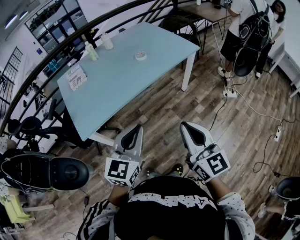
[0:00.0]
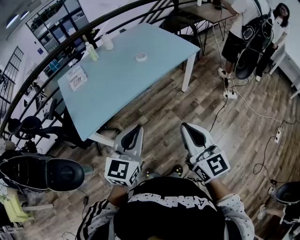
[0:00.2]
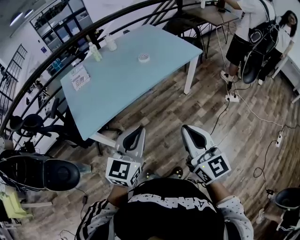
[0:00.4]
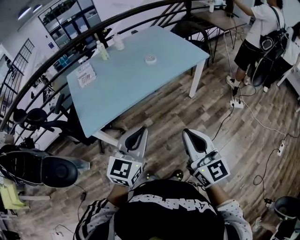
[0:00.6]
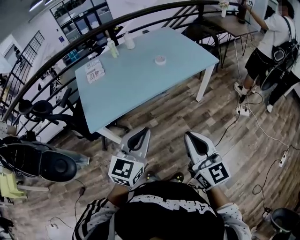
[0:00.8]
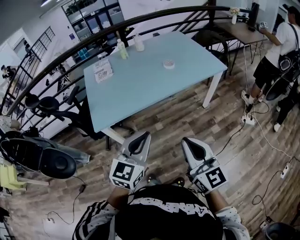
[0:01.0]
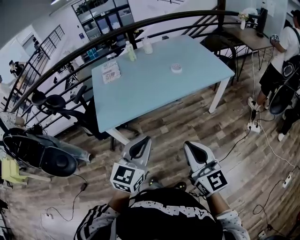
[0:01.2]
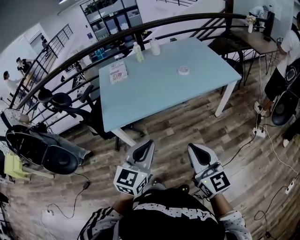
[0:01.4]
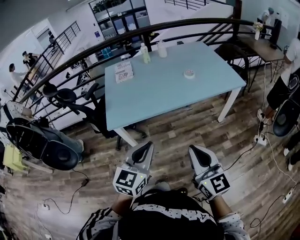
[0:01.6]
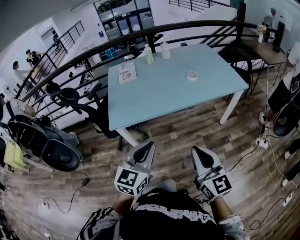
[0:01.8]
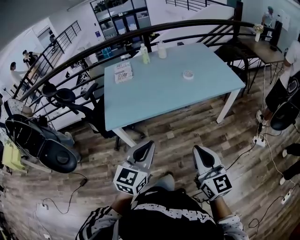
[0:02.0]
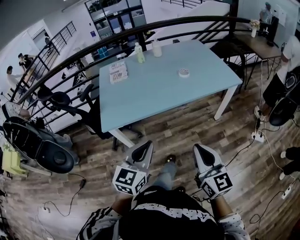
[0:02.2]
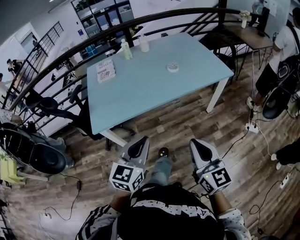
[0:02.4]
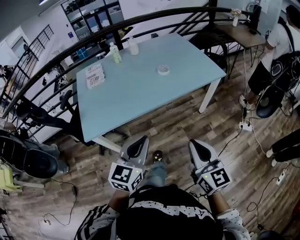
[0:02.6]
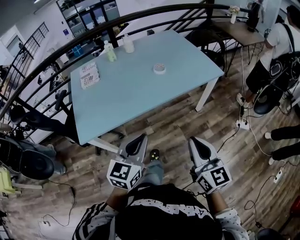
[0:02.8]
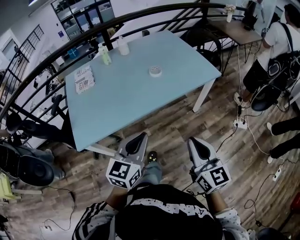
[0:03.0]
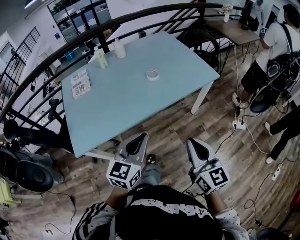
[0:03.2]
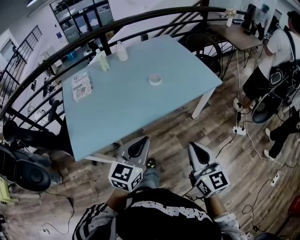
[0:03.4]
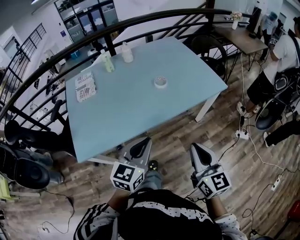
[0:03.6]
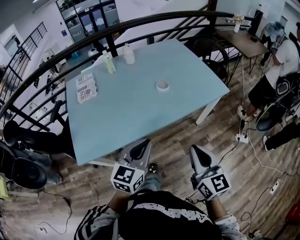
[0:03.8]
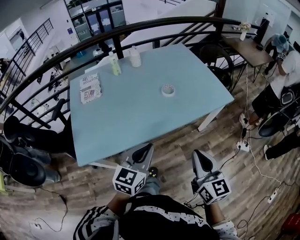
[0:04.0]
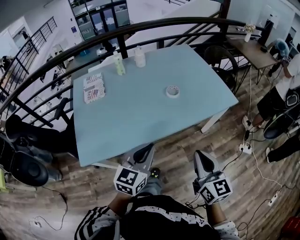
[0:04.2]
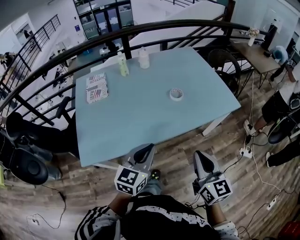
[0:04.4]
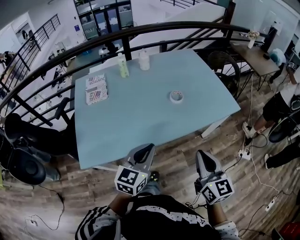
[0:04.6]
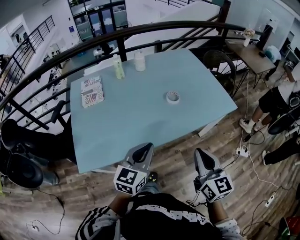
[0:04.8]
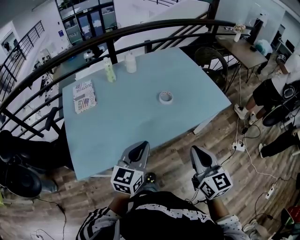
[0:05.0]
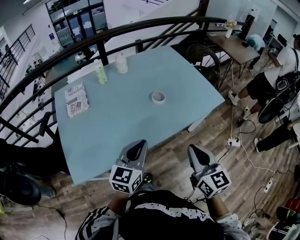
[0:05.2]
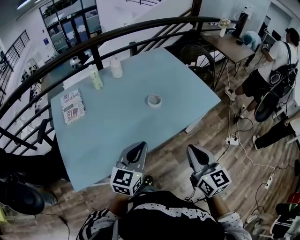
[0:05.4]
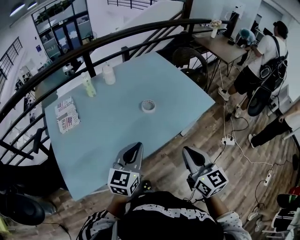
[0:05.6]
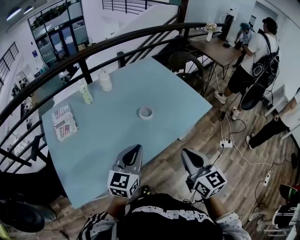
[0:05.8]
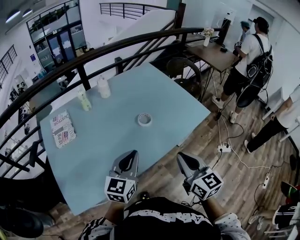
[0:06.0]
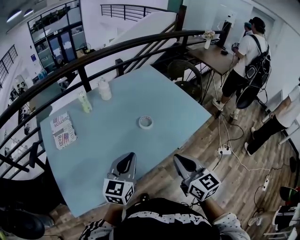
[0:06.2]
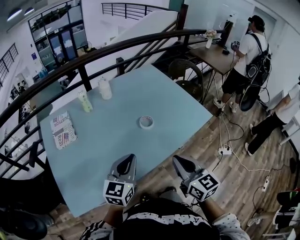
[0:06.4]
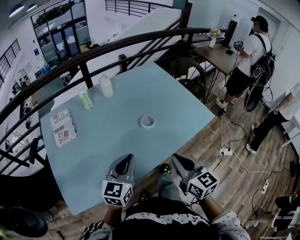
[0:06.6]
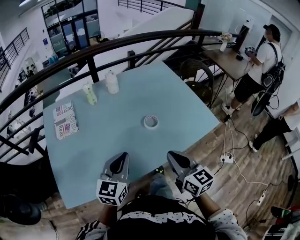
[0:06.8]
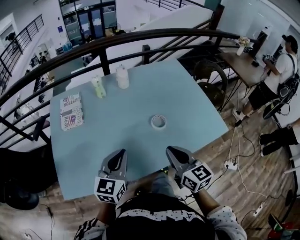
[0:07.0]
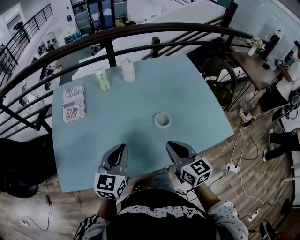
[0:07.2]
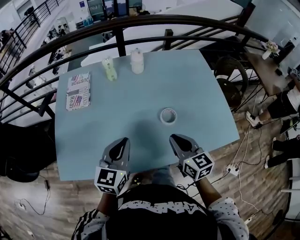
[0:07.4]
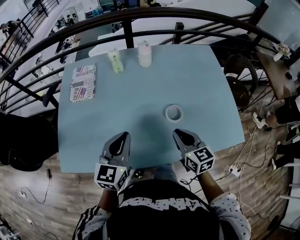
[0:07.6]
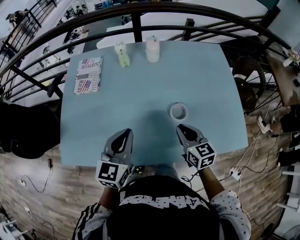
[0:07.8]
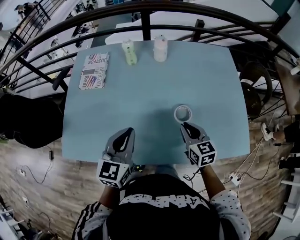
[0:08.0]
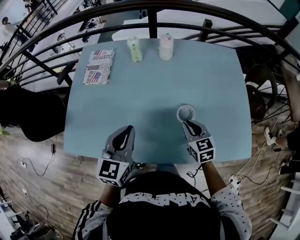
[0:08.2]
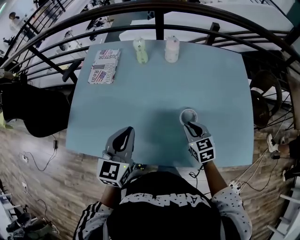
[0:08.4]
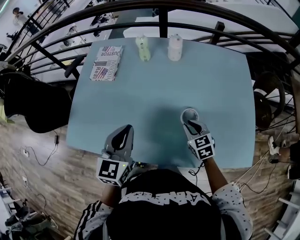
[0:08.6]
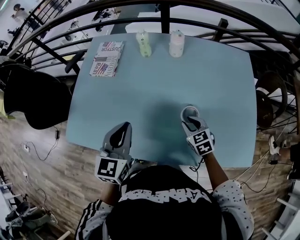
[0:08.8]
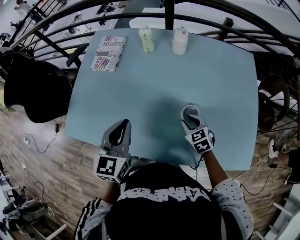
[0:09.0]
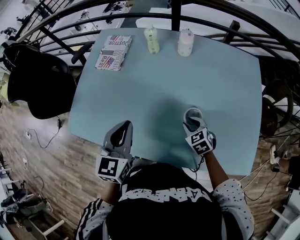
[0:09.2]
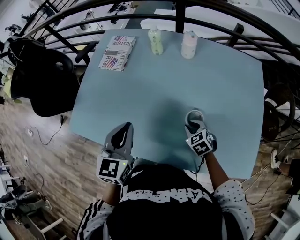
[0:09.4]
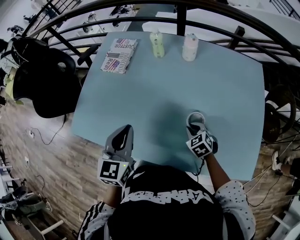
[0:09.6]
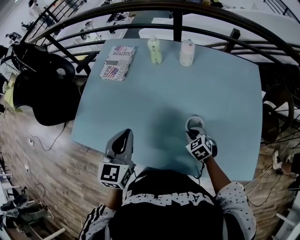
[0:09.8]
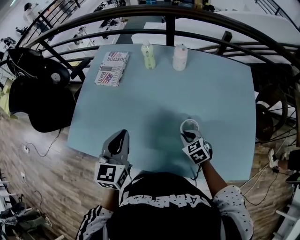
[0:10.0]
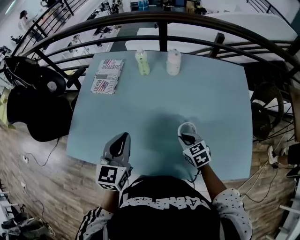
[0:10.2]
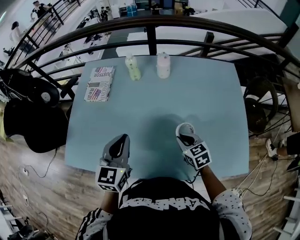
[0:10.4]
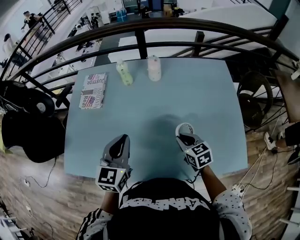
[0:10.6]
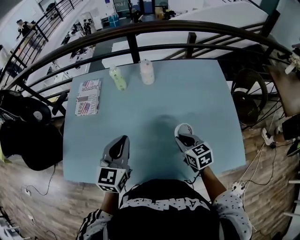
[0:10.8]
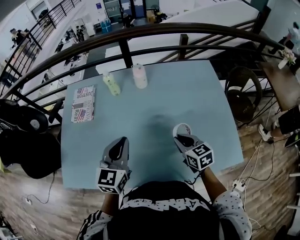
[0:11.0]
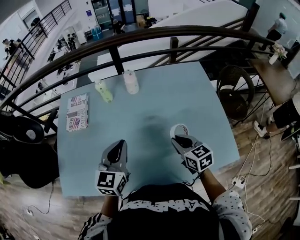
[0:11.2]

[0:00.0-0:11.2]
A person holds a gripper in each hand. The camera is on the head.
0:00.0 to 0:01.6: The right gripper changes its angle by approximately 20 degrees.
0:01.6 to 0:03.2: The two grippers go approximately 25 cm forward and to the right.
0:03.2 to 0:04.8: The two grippers go approximately 15 cm forward and to the left.
0:04.8 to 0:06.4: Both grippers move forward, roughly 10 cm.
0:06.4 to 0:08.0: The right gripper changes place by approximately 30 cm, and swivels approximately 30 degrees. The left gripper moves some 10 cm, and rotates approximately 30 degrees.
0:08.0 to 0:09.6: The left gripper rotates some 20 degrees. Meanwhile the right gripper goes about 10 cm downward, and turns by approximately 40 degrees.
0:09.6 to 0:11.2: The left gripper moves to the right, some 10 cm, and swivels roughly 30 degrees; the right gripper shifts approximately 20 cm upward and to the right, and rotates approximately 40 degrees.

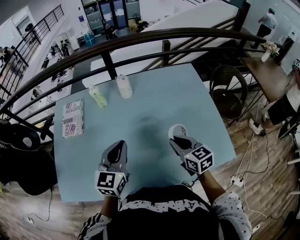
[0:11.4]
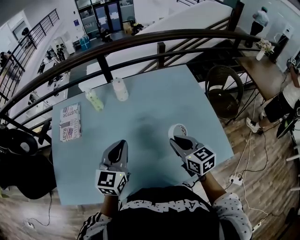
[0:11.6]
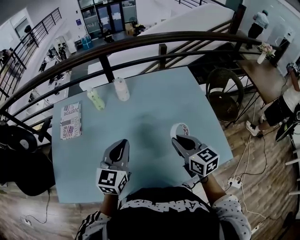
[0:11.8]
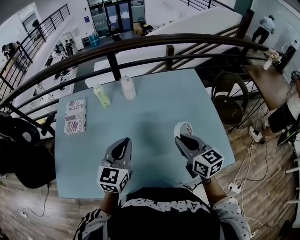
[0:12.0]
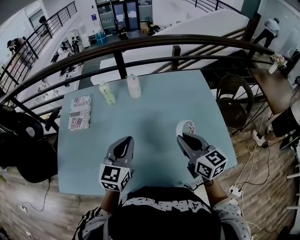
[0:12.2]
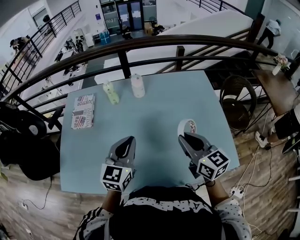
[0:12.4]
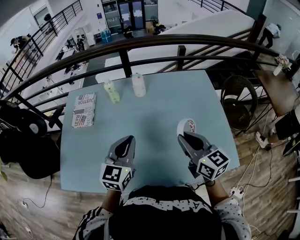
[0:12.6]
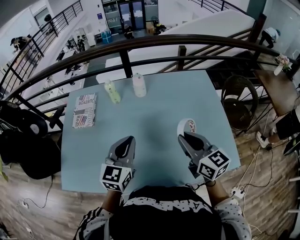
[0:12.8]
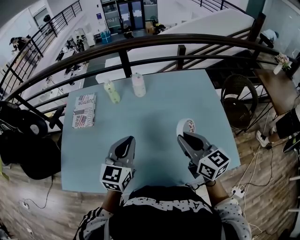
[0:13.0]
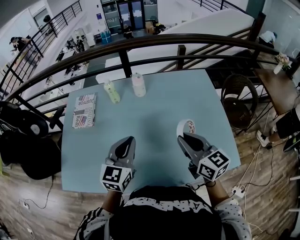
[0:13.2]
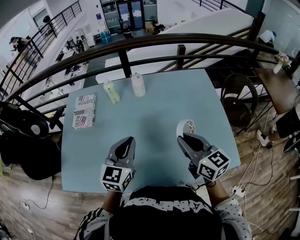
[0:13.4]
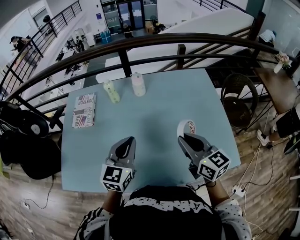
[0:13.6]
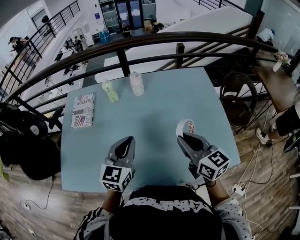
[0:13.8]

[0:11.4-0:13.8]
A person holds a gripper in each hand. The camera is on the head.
0:11.4 to 0:12.6: The right gripper travels upward by roughly 10 cm.
0:12.6 to 0:13.8: Both grippers stay about where they are.

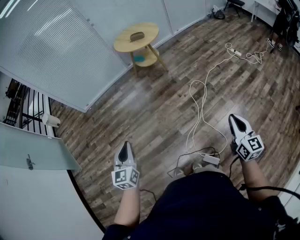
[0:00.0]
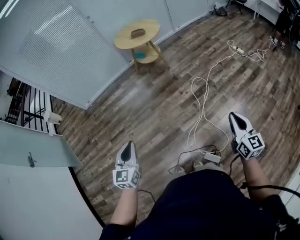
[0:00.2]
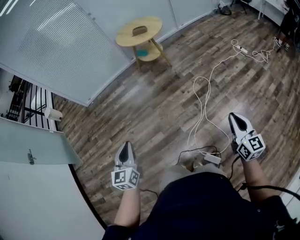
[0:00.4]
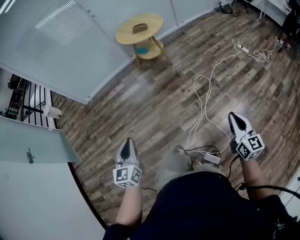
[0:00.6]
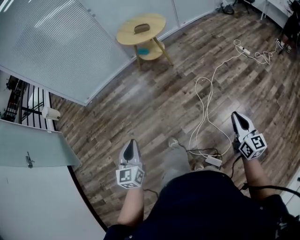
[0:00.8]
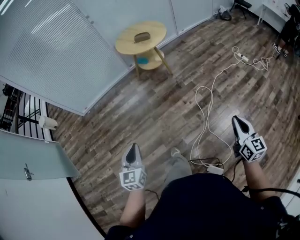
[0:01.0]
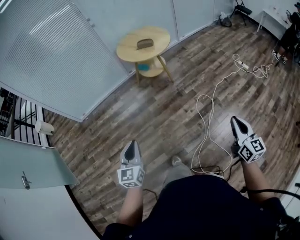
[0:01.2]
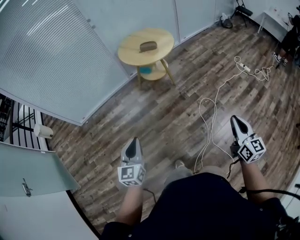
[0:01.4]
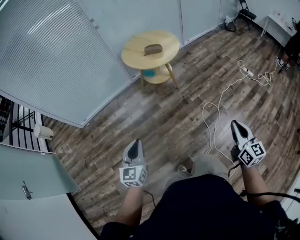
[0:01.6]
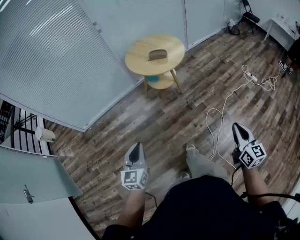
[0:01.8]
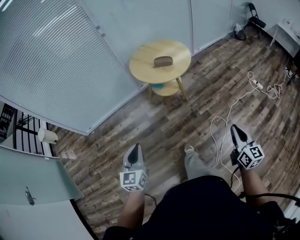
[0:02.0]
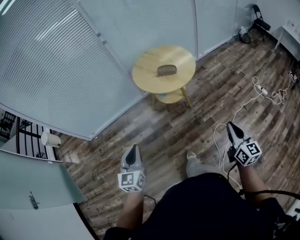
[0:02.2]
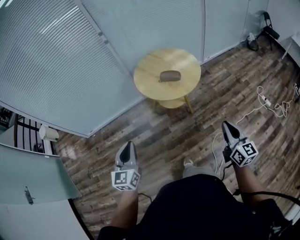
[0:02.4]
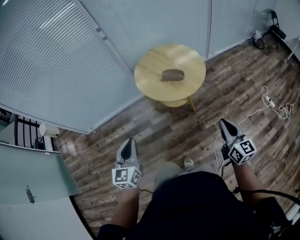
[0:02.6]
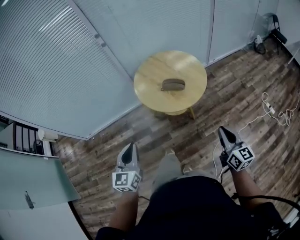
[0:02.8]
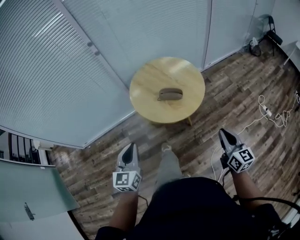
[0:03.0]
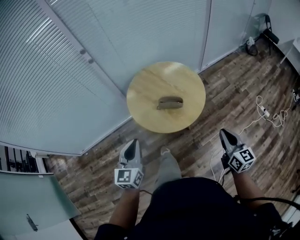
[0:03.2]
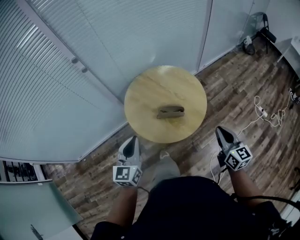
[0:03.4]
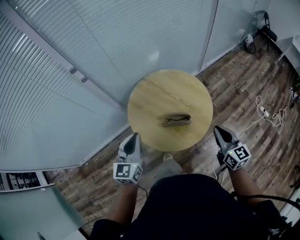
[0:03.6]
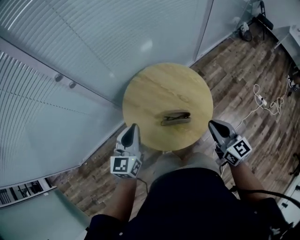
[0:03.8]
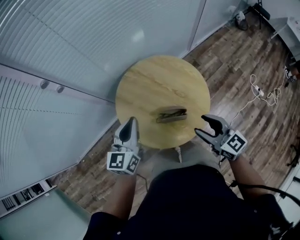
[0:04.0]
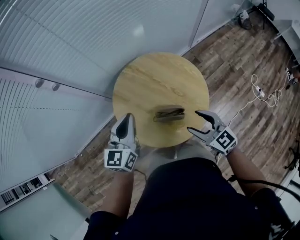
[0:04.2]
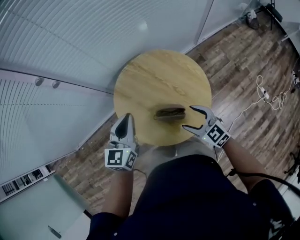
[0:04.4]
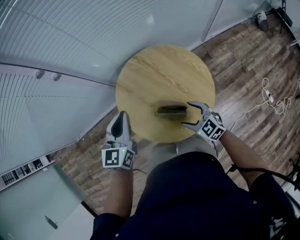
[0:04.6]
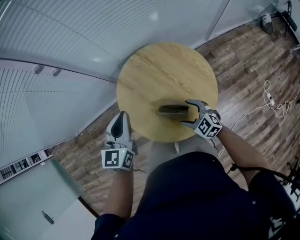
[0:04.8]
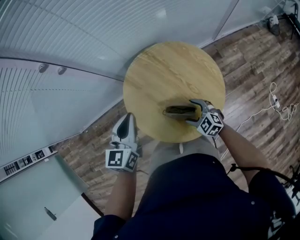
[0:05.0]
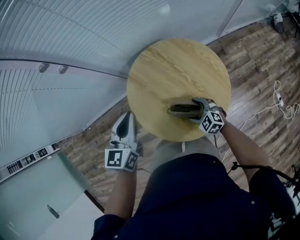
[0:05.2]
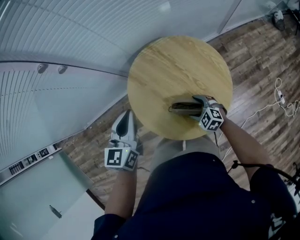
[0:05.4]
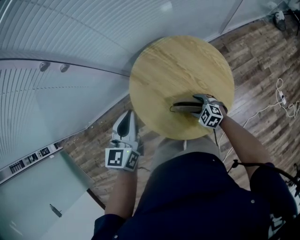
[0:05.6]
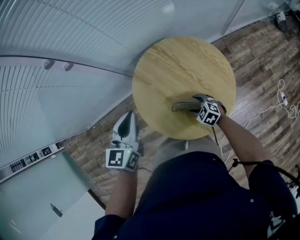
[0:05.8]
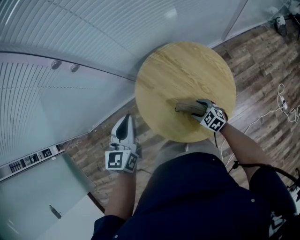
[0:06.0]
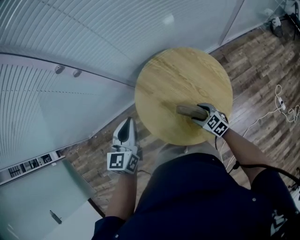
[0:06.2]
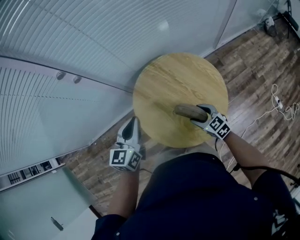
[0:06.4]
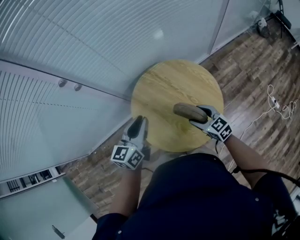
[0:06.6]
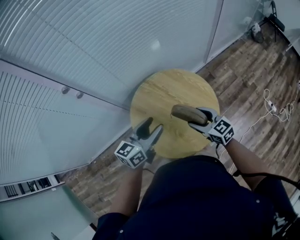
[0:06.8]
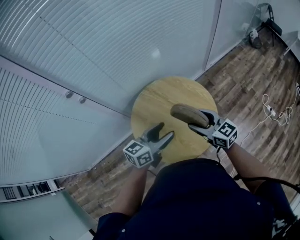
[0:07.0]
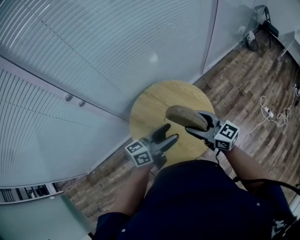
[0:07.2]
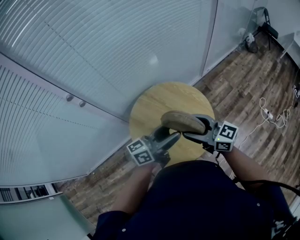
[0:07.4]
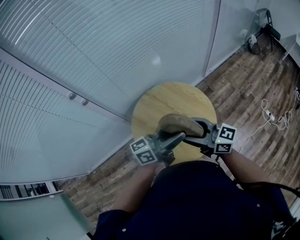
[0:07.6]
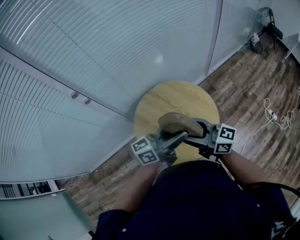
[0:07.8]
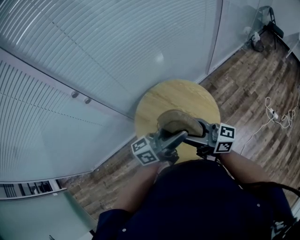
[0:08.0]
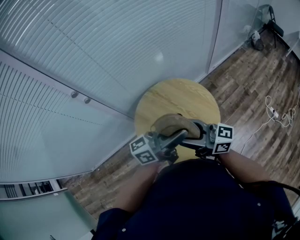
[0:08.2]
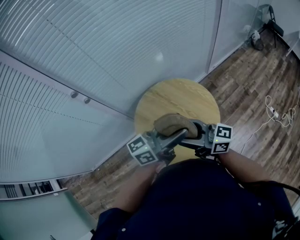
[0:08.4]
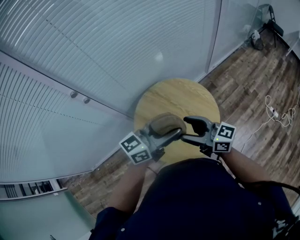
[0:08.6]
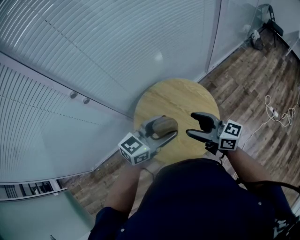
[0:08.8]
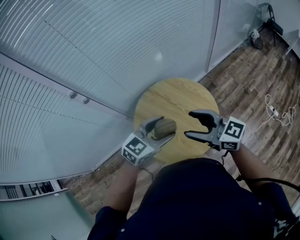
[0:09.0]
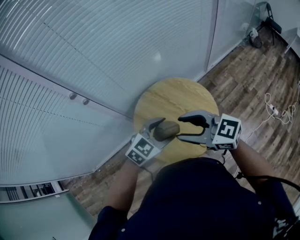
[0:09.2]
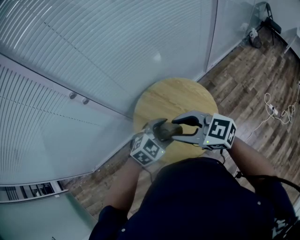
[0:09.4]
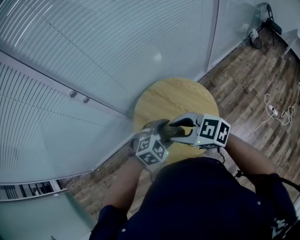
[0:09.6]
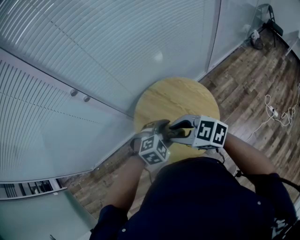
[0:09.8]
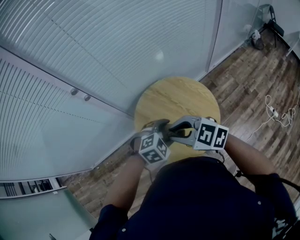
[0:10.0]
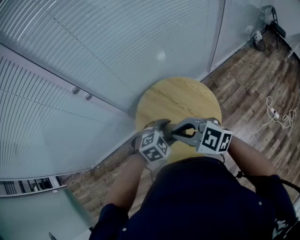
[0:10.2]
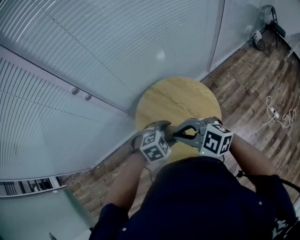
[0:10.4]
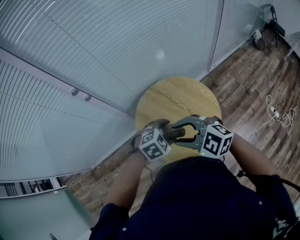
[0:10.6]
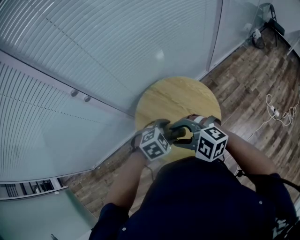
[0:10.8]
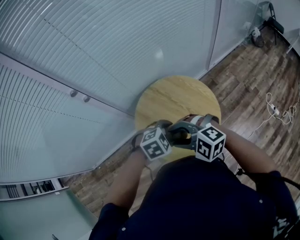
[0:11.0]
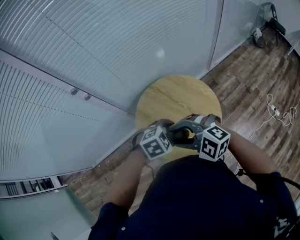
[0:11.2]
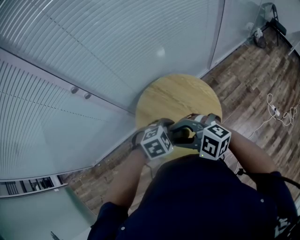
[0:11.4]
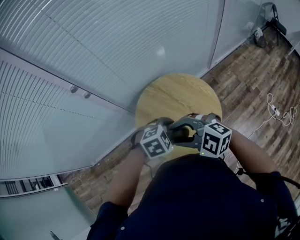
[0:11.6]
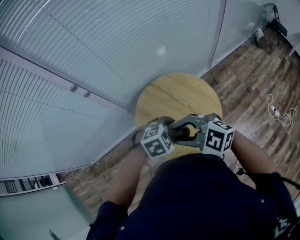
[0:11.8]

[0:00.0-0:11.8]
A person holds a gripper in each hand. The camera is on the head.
0:00.0 to 0:01.4: Both grippers travel together forward, some 35 cm.
0:01.4 to 0:03.0: Both grippers are carried forward, approximately 60 cm.
0:03.0 to 0:04.4: The grippers both shift forward by some 35 cm. The right gripper turns by roughly 40 degrees, and opens.
0:04.4 to 0:06.0: The right gripper travels downward and forward by roughly 20 cm, and rotates about 20 degrees, while the left gripper travels to the left by roughly 10 cm.
0:06.0 to 0:07.4: The right gripper shifts some 35 cm upward, and tips its fingers upward by about 50 degrees. The left gripper changes place by approximately 20 cm, angles its fingers upward, by roughly 30 degrees, and opens.
0:07.4 to 0:08.8: The left gripper rotates approximately 40 degrees.
0:08.8 to 0:10.4: The right gripper ends up some 10 cm from where it was, tips its fingers downward by approximately 30 degrees, and closes up, while the left gripper shifts some 10 cm downward, and angles its fingers downward, by some 50 degrees.
0:10.4 to 0:11.8: The right gripper opens up.
